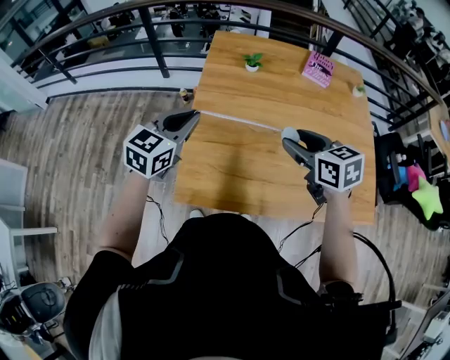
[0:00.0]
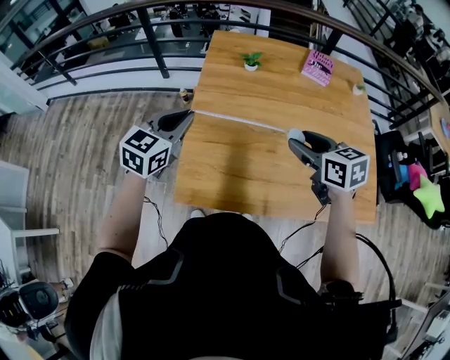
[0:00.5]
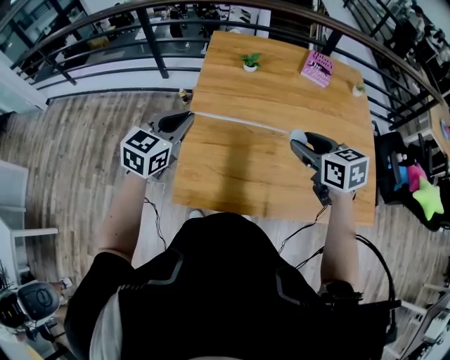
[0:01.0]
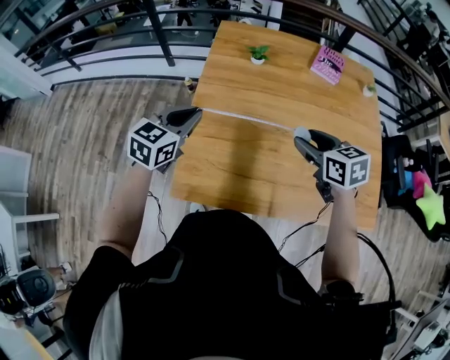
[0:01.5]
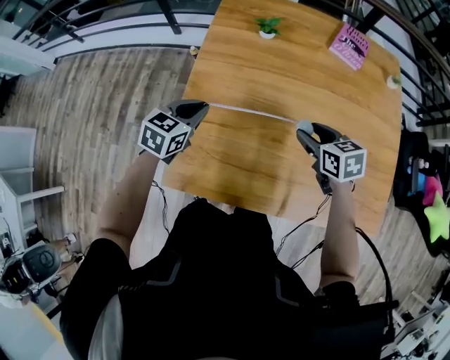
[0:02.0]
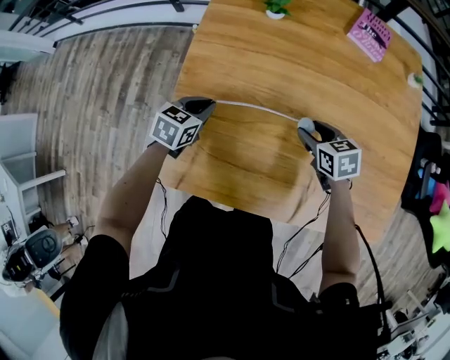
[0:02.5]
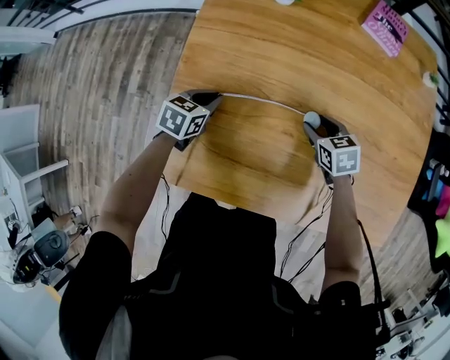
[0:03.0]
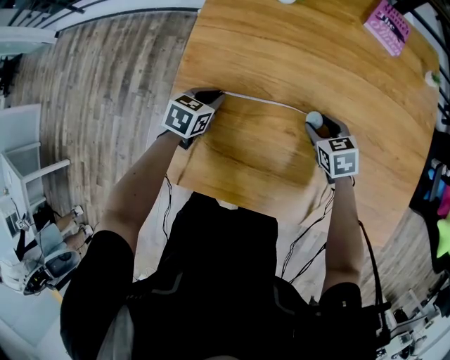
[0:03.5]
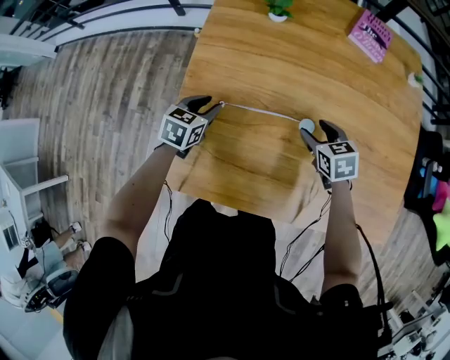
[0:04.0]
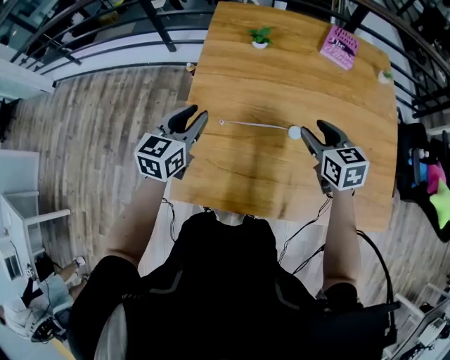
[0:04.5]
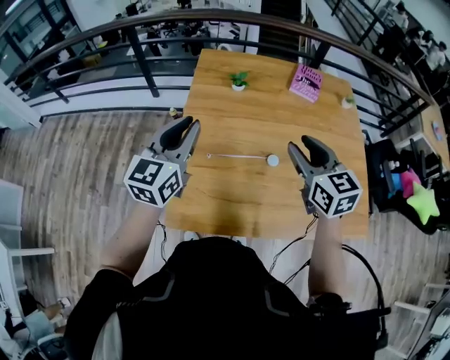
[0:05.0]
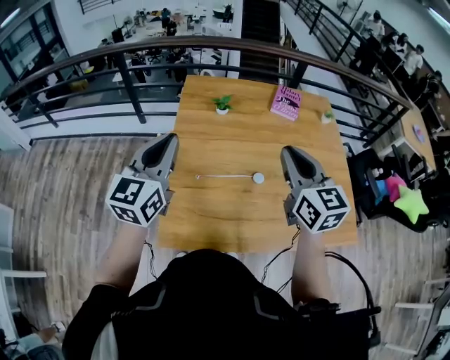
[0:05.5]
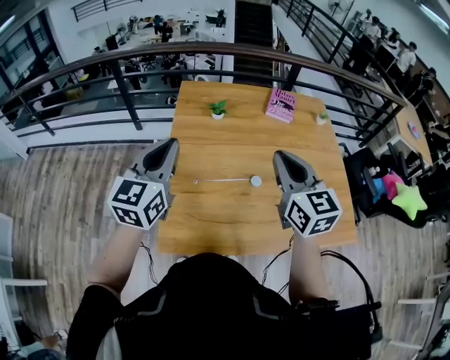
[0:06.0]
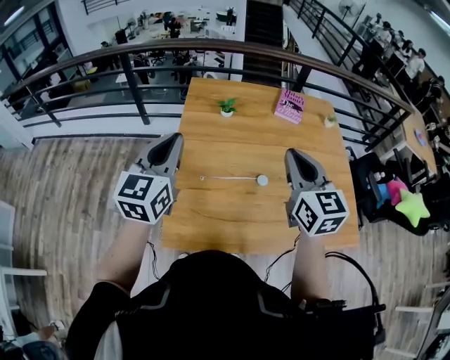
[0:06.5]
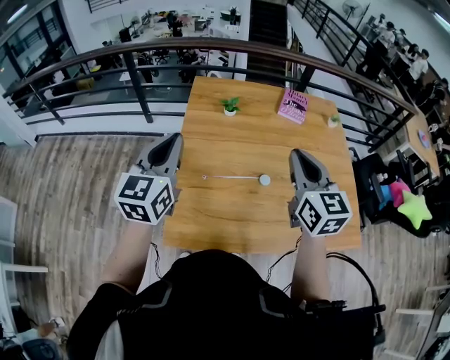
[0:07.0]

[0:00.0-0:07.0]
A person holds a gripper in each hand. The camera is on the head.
0:00.0 to 0:02.0: The left gripper goes approximately 15 cm downward; the right gripper is displaced downward, to the right and forward by some 20 cm.
0:02.0 to 0:03.5: The grippers both shift downward by roughly 15 cm.
0:03.5 to 0:05.0: Both grippers move upward, approximately 40 cm. The left gripper tilts its fingers some 50 degrees upward, while the right gripper angles its fingers upward, by some 30 degrees.
0:05.0 to 0:07.0: The two grippers go approximately 5 cm upward. The right gripper closes up.

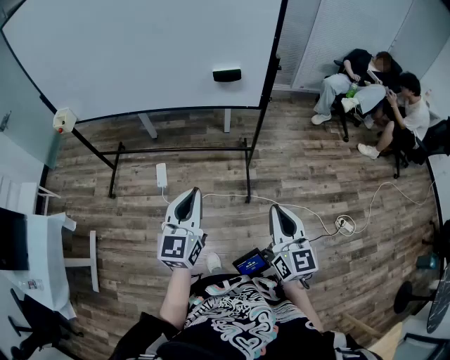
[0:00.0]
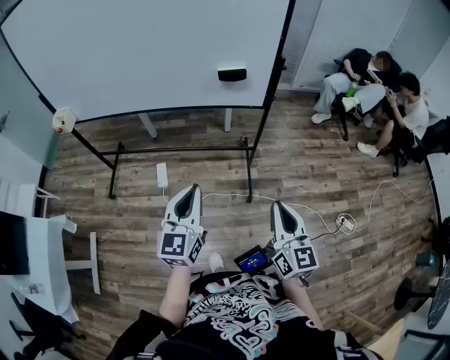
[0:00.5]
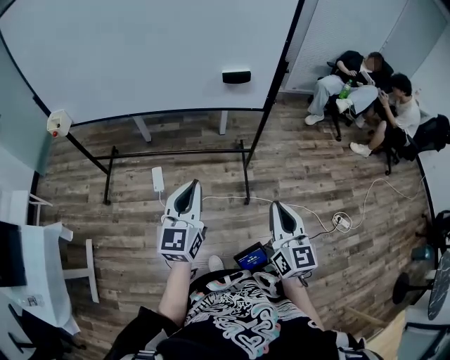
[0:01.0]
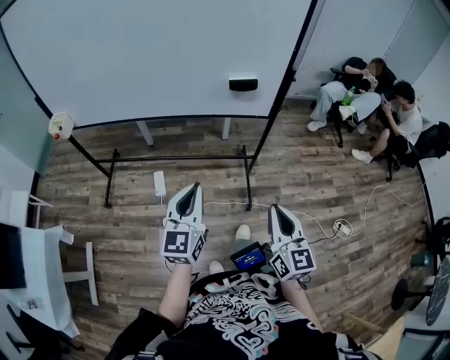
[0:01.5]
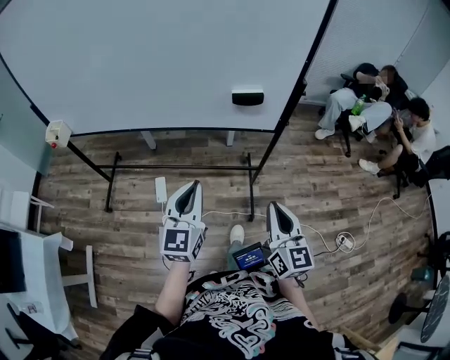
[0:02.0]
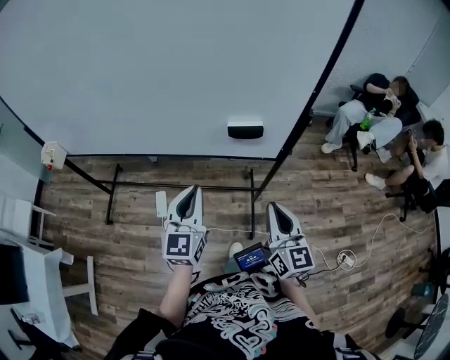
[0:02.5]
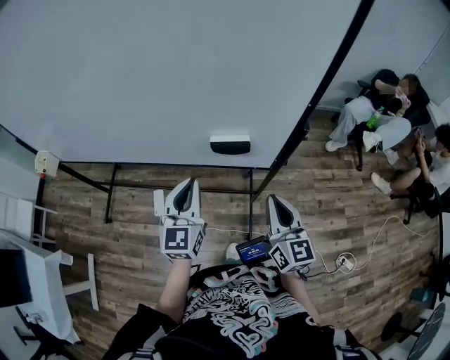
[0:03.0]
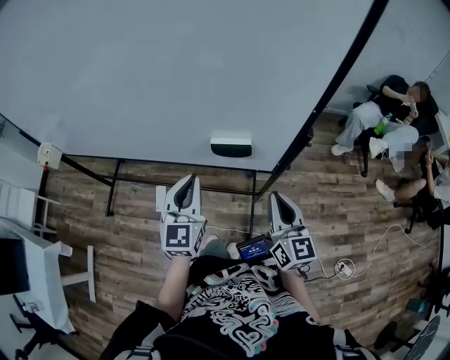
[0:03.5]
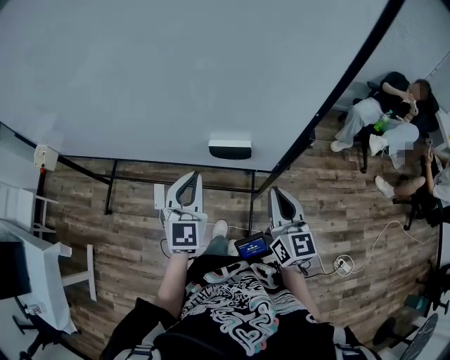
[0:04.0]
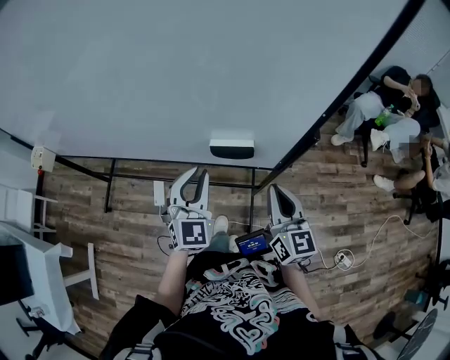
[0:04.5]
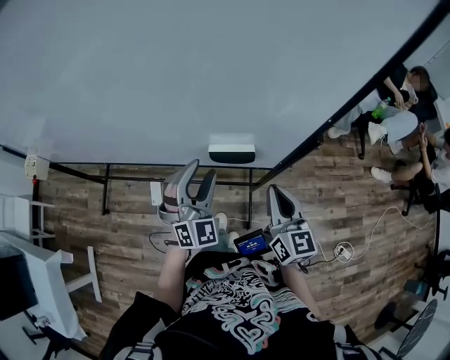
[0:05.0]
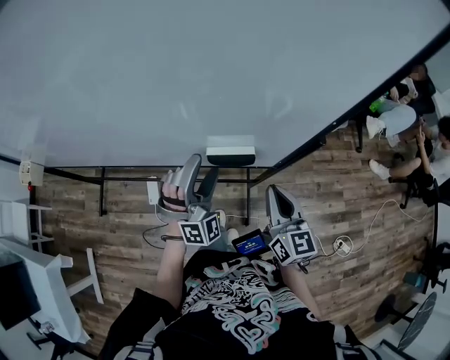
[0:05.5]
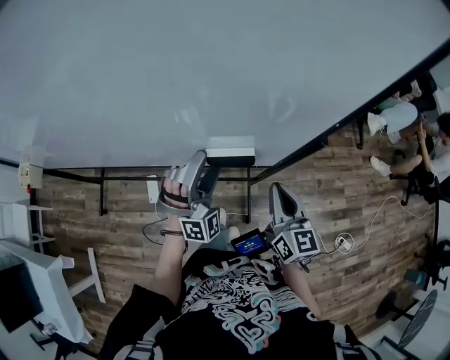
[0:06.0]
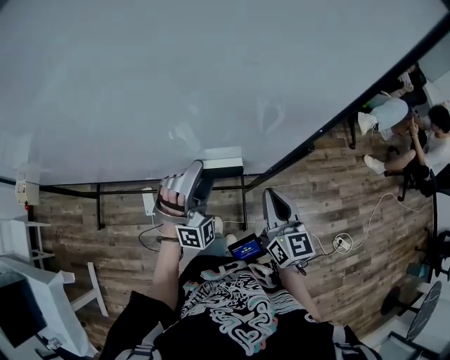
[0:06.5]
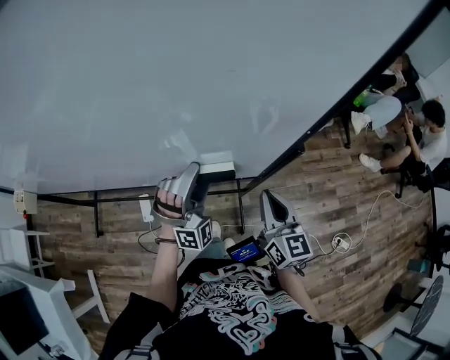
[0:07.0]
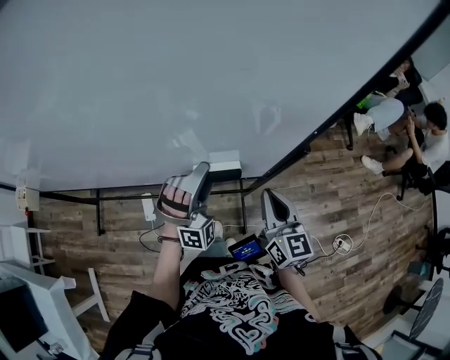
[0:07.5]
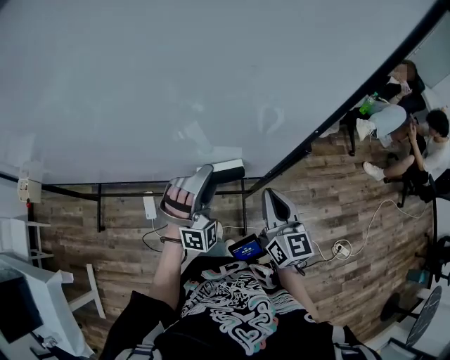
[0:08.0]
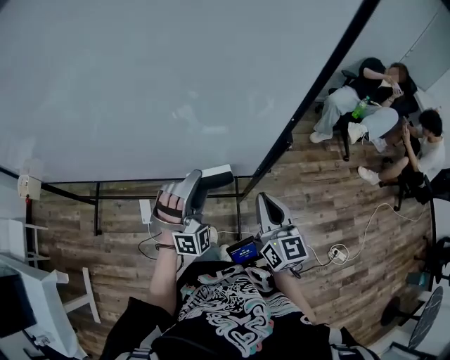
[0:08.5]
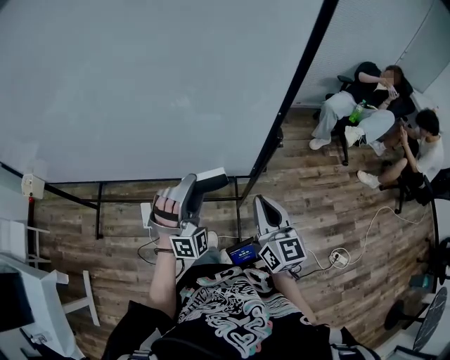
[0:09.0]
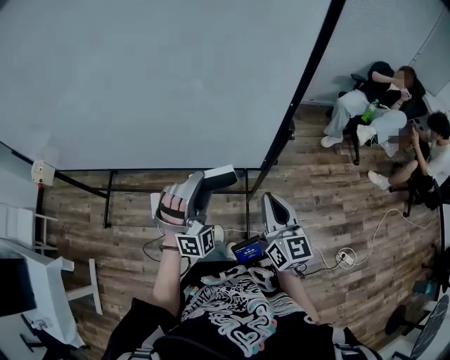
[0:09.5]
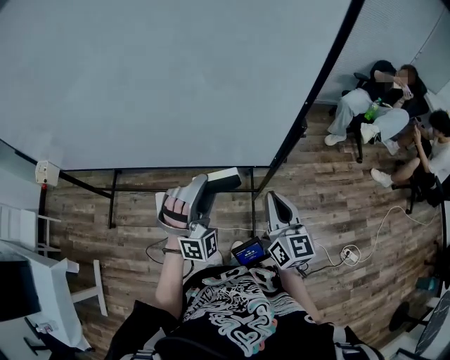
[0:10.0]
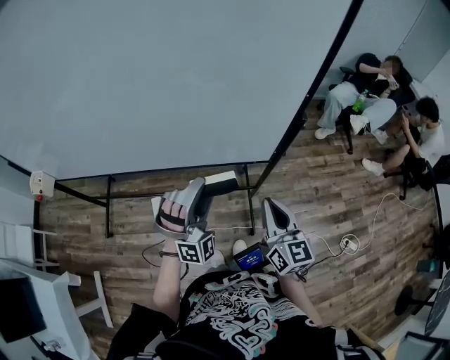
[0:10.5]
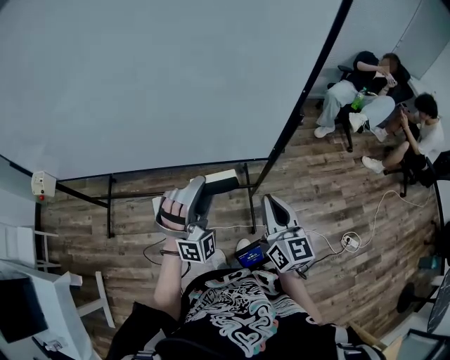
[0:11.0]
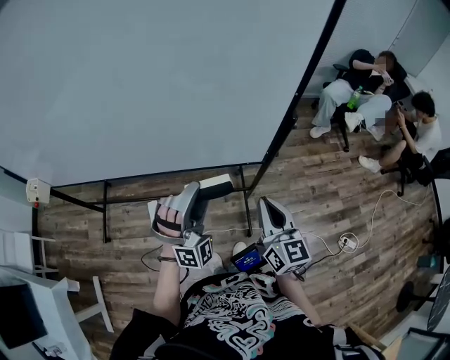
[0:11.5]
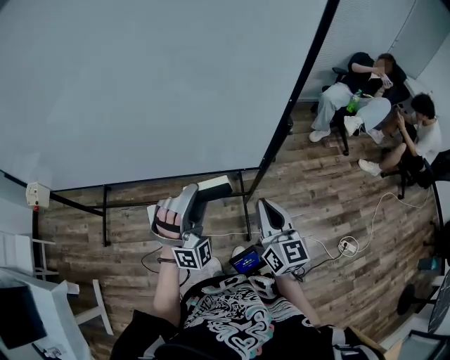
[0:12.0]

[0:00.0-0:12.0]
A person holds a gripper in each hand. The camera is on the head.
0:00.0 to 0:02.0: The two grippers go about 15 cm forward and to the left.
0:02.0 to 0:04.0: Both grippers move forward, roughly 25 cm.
0:04.0 to 0:06.0: The right gripper shifts by roughly 5 cm. Meanwhile the left gripper goes about 10 cm forward and to the right, rolls clockwise, seen from behind, by some 60 degrees, and opens its fingers.
0:06.0 to 0:08.0: The grippers make only small movements.
0:08.0 to 0:10.0: Both grippers travel together backward, approximately 10 cm.

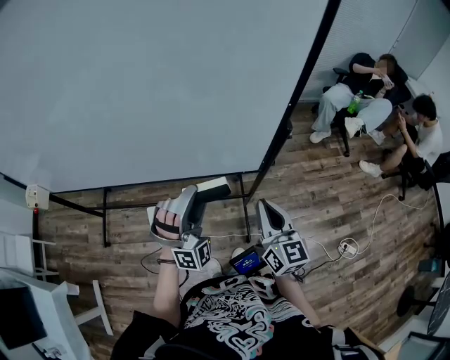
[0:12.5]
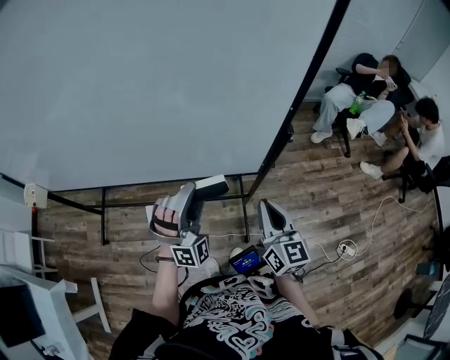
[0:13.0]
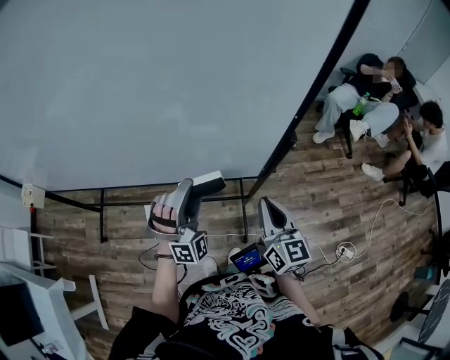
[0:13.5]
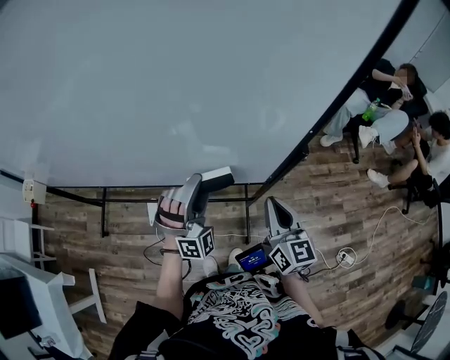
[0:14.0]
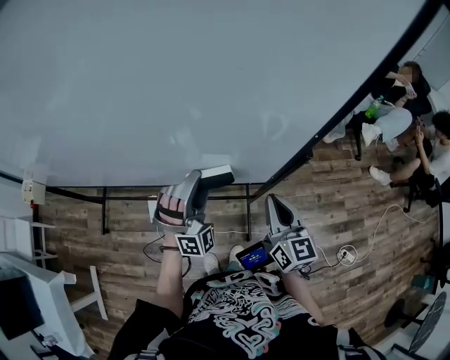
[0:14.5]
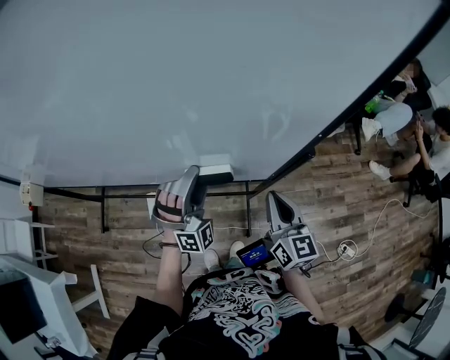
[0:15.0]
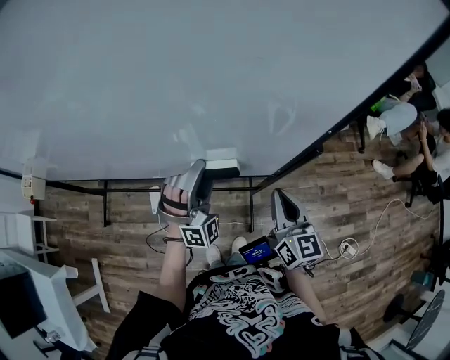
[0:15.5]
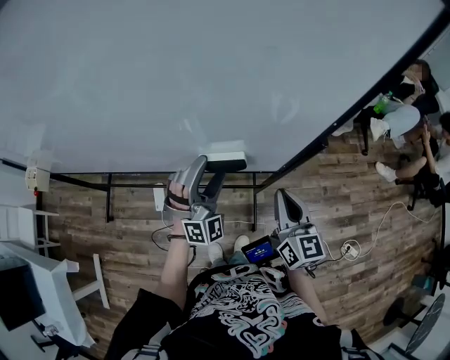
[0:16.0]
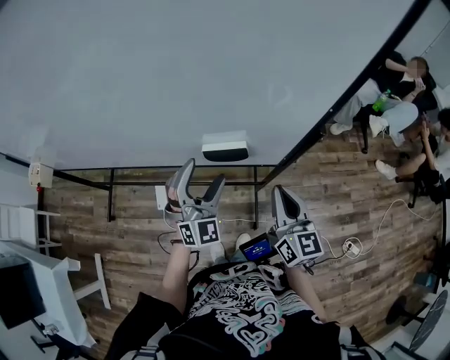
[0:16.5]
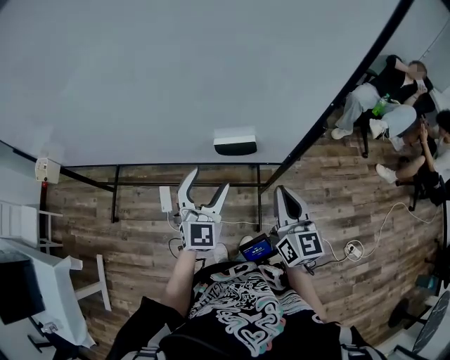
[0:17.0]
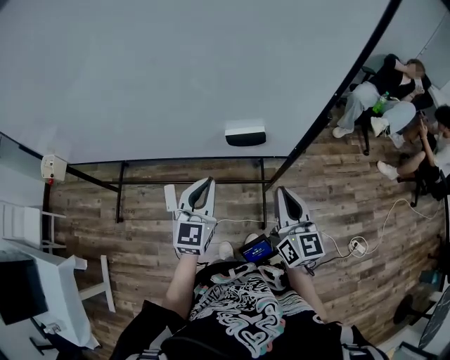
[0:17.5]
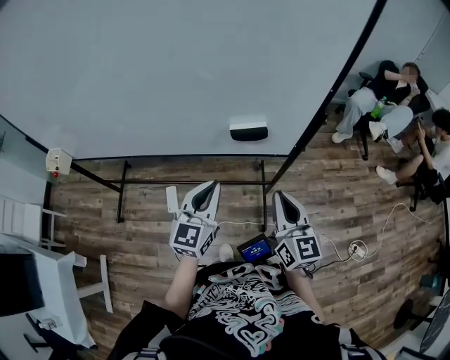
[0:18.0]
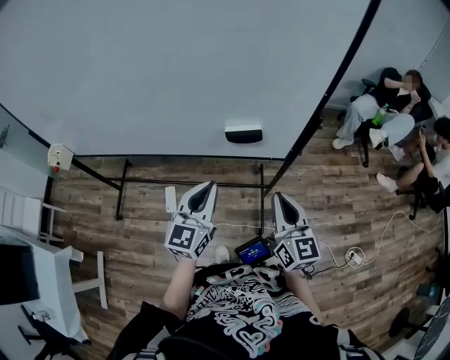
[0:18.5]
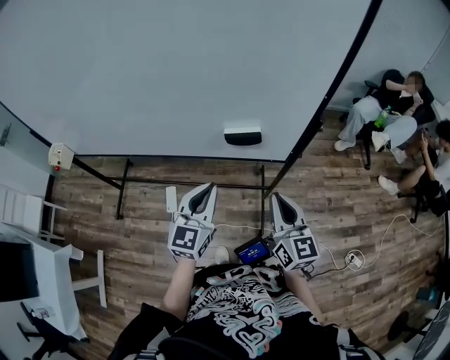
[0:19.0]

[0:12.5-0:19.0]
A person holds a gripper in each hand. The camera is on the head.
0:12.5 to 0:14.5: Both grippers move forward, approximately 10 cm.
0:14.5 to 0:17.0: The right gripper goes approximately 5 cm backward, while the left gripper moves backward and to the left, some 10 cm, and rotates around the line of its fingers by some 50 degrees, counterclockwise from behind.
0:17.0 to 0:19.0: Both grippers travel together backward, about 5 cm. The left gripper changes its angle by about 20 degrees, and closes up.

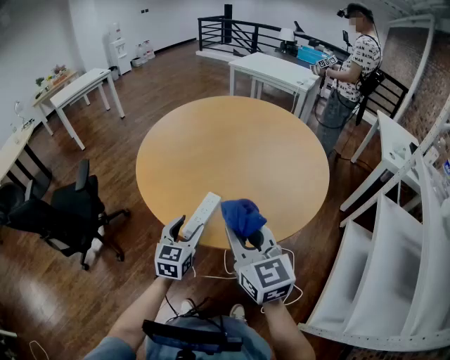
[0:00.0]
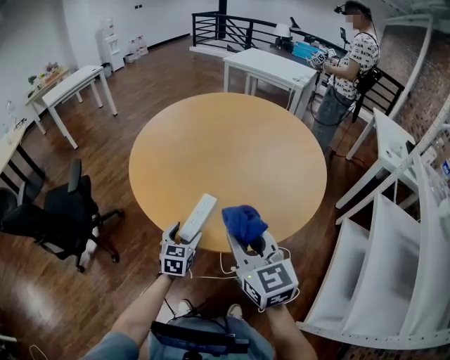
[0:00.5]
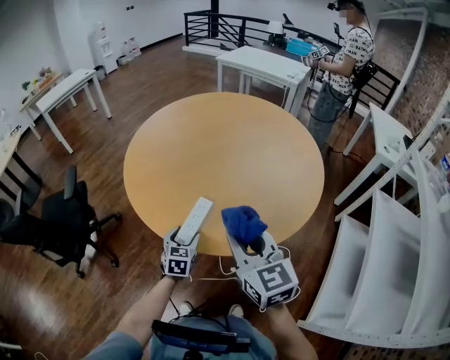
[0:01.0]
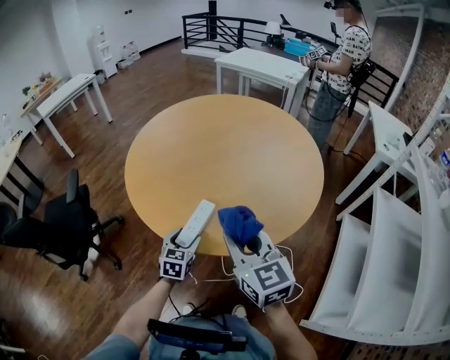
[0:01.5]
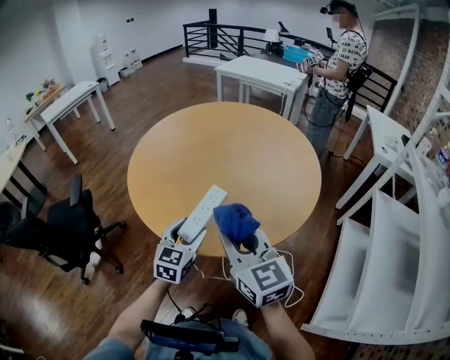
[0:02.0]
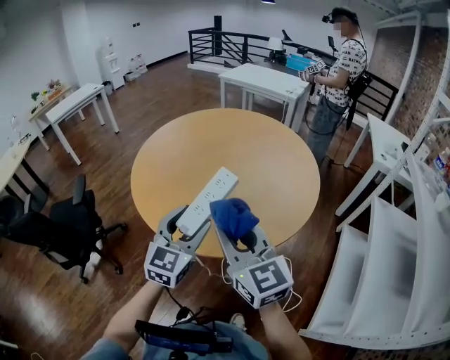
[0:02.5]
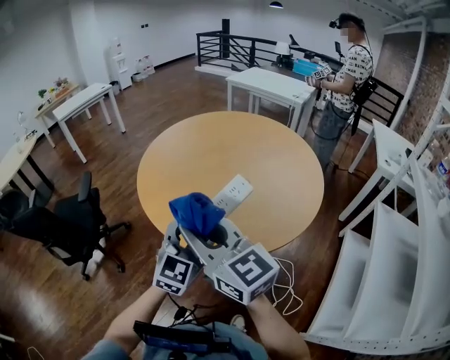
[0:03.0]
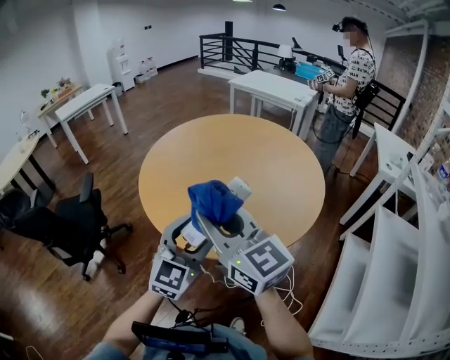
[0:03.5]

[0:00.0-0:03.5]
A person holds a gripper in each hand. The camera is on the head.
0:00.0 to 0:02.0: The left gripper goes downward and returns, approximately 10 cm each way.
0:02.0 to 0:03.5: The right gripper is displaced upward and to the left by roughly 10 cm, and rotates roughly 20 degrees; the left gripper shifts some 15 cm upward and backward, and changes its angle by about 20 degrees.
